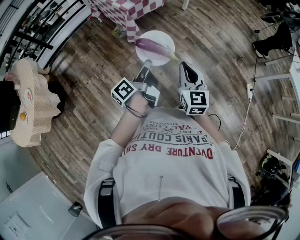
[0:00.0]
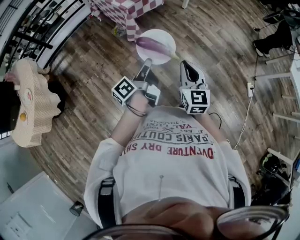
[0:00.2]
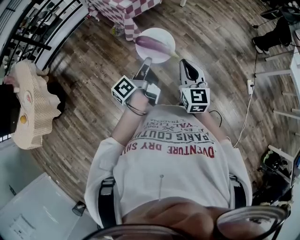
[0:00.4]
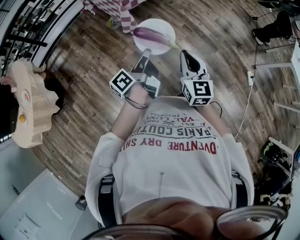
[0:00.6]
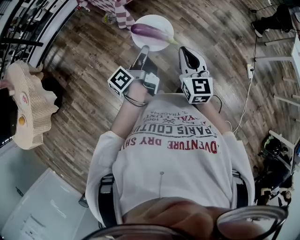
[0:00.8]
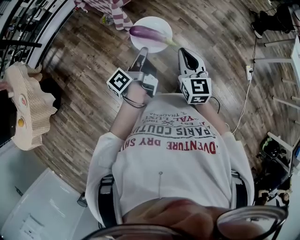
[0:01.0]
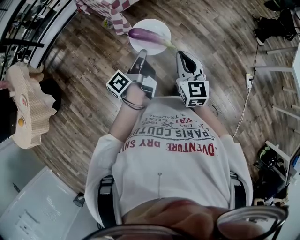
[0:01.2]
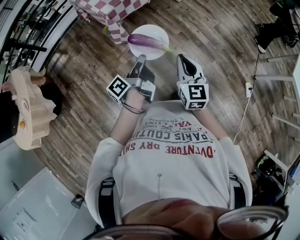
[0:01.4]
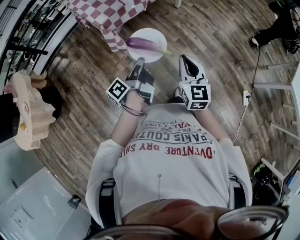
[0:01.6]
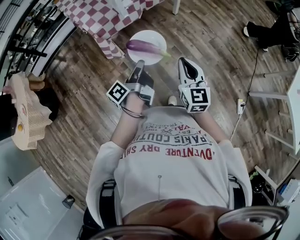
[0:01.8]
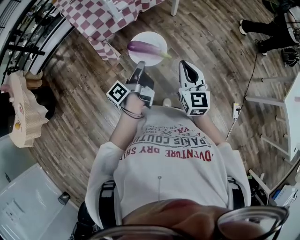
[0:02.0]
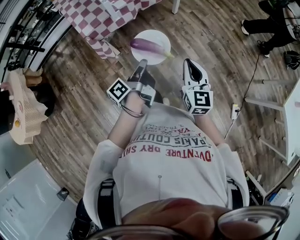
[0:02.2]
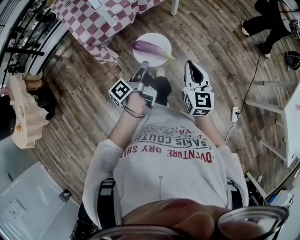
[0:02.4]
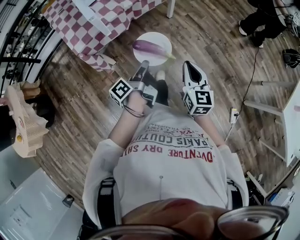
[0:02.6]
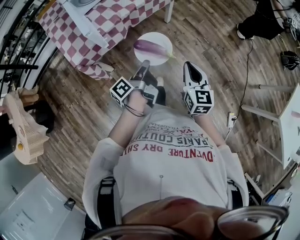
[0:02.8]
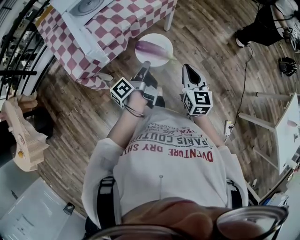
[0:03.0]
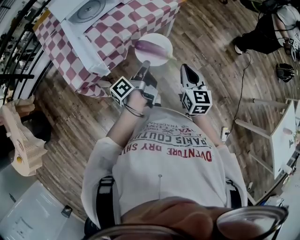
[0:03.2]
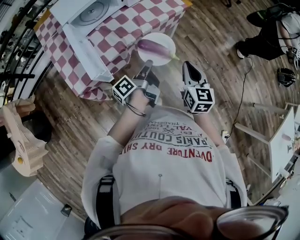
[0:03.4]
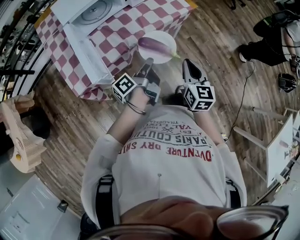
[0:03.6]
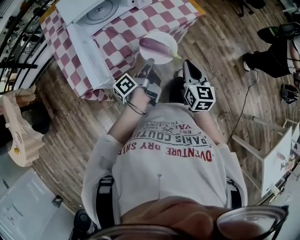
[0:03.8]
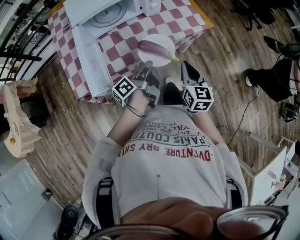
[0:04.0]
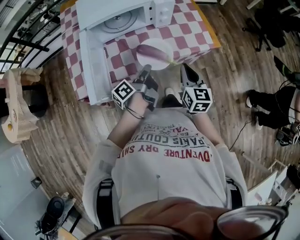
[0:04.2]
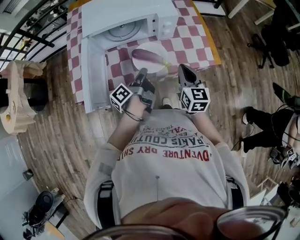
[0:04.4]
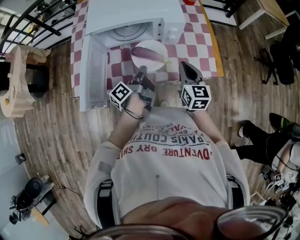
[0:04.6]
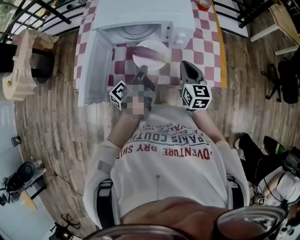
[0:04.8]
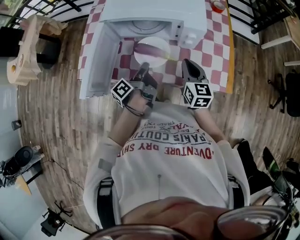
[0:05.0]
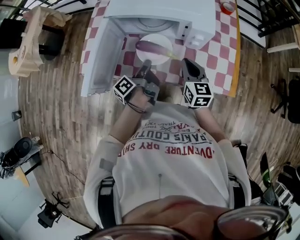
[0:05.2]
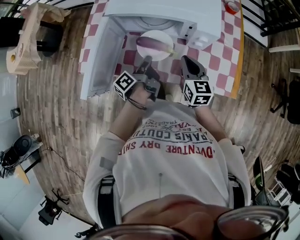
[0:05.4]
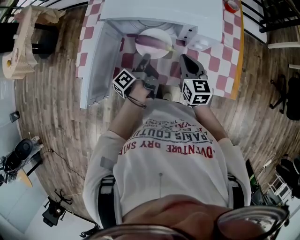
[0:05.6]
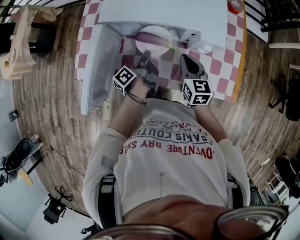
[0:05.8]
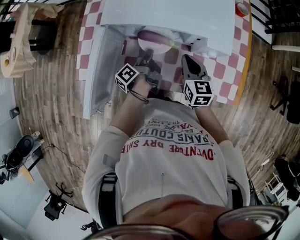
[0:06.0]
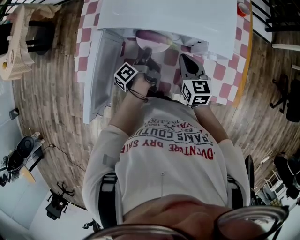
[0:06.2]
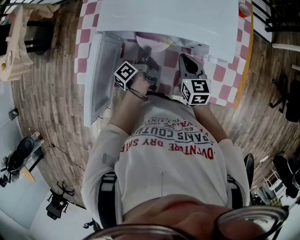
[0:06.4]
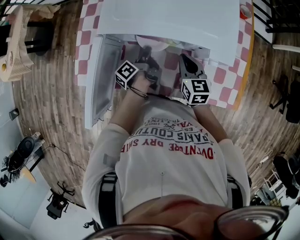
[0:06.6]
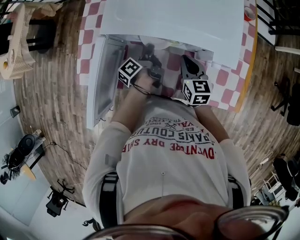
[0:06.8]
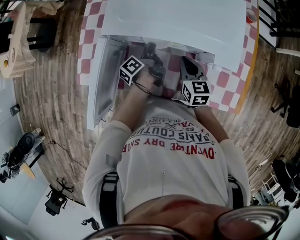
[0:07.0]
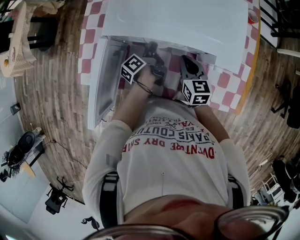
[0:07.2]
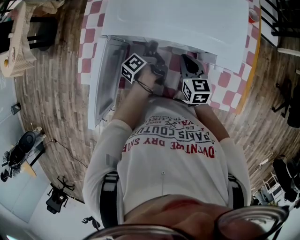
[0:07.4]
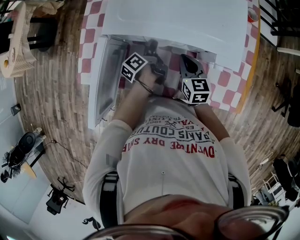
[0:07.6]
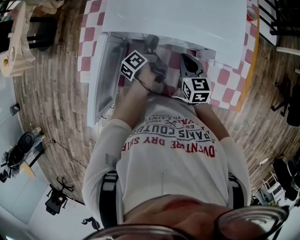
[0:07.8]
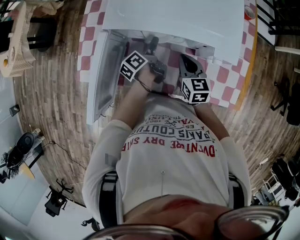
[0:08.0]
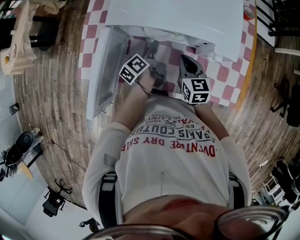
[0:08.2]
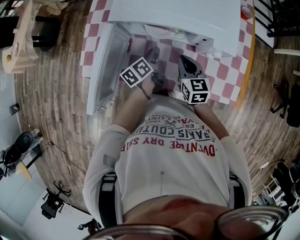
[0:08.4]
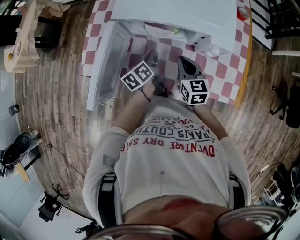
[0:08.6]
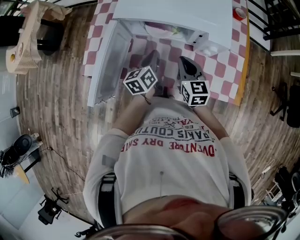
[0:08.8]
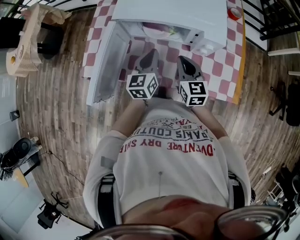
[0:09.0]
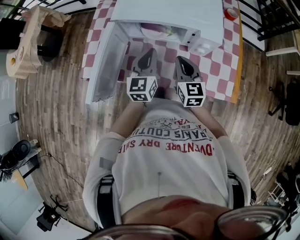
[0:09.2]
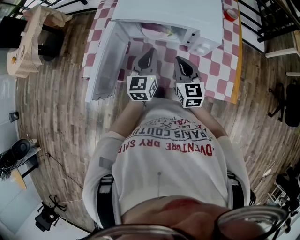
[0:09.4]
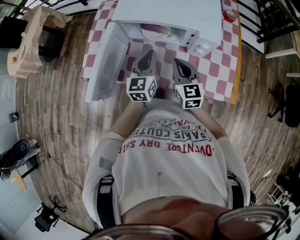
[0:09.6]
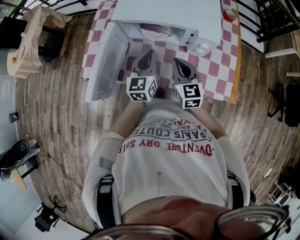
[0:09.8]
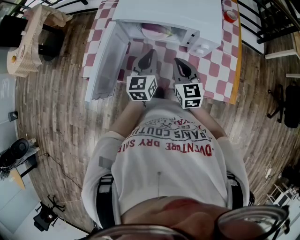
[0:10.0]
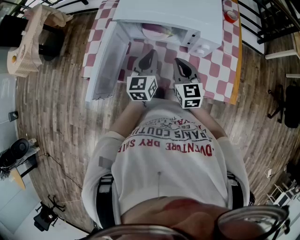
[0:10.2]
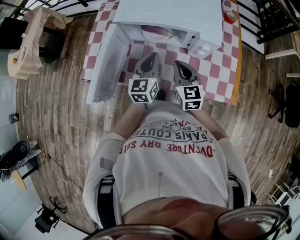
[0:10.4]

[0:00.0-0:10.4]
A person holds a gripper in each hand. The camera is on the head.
0:00.0 to 0:01.4: The right gripper moves roughly 15 cm.
0:01.4 to 0:03.0: The right gripper changes place by some 50 cm.
0:03.0 to 0:04.4: The right gripper moves approximately 40 cm, and changes its angle by roughly 30 degrees.
0:04.4 to 0:06.0: The right gripper shifts by approximately 25 cm, and swivels some 30 degrees.
0:06.0 to 0:07.4: The right gripper changes place by approximately 5 cm.
0:07.4 to 0:09.0: The right gripper changes place by about 15 cm.

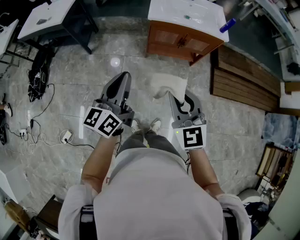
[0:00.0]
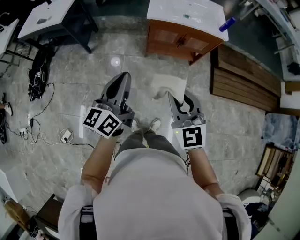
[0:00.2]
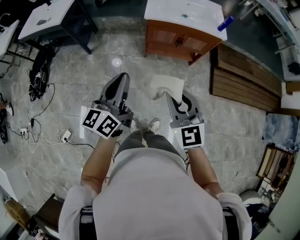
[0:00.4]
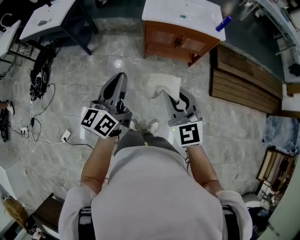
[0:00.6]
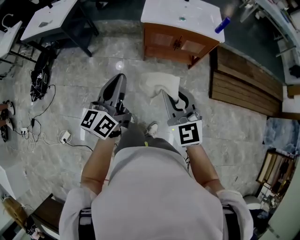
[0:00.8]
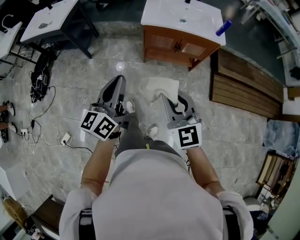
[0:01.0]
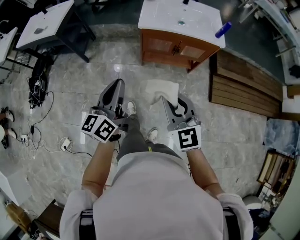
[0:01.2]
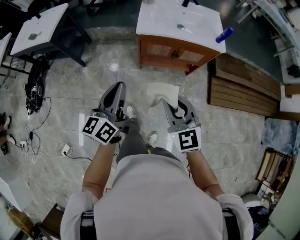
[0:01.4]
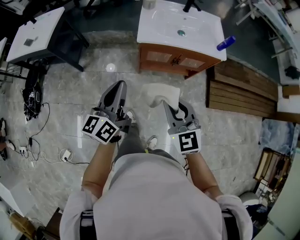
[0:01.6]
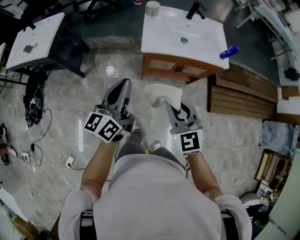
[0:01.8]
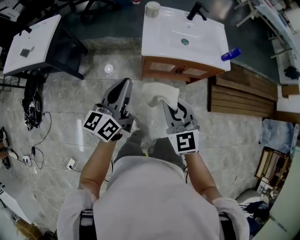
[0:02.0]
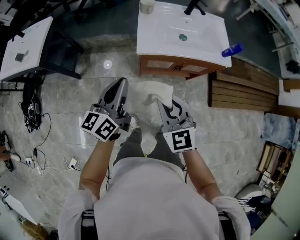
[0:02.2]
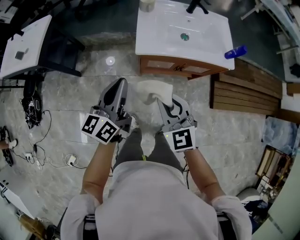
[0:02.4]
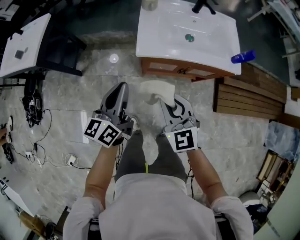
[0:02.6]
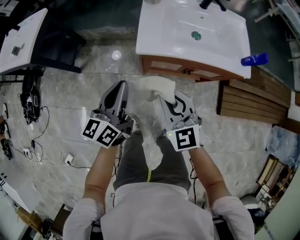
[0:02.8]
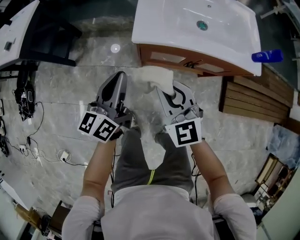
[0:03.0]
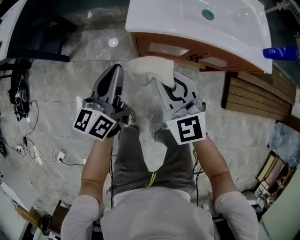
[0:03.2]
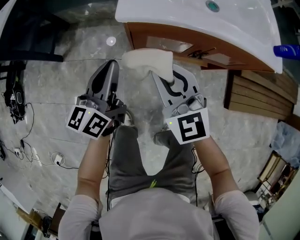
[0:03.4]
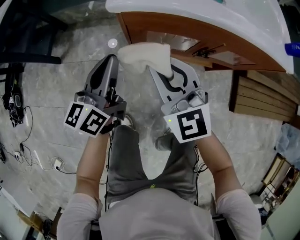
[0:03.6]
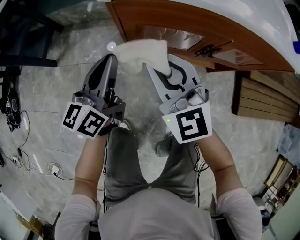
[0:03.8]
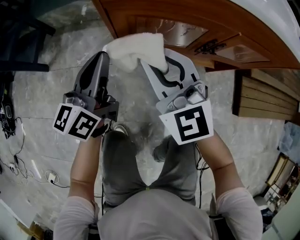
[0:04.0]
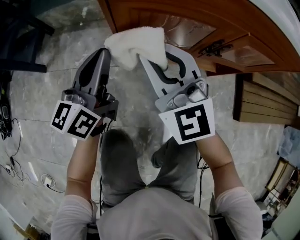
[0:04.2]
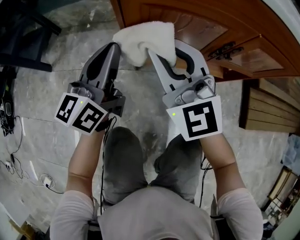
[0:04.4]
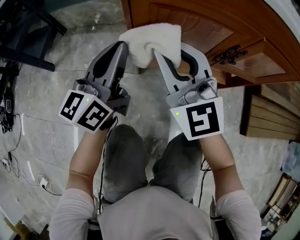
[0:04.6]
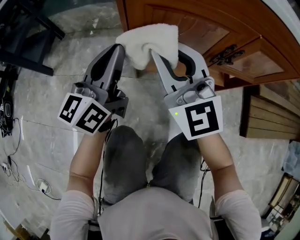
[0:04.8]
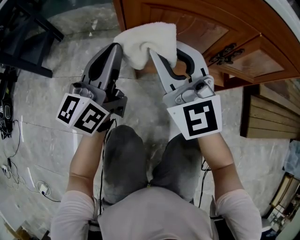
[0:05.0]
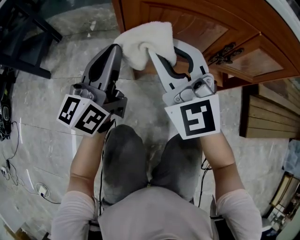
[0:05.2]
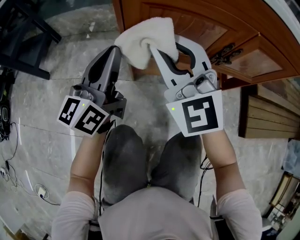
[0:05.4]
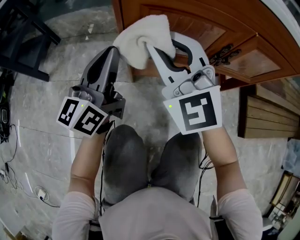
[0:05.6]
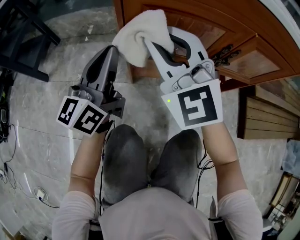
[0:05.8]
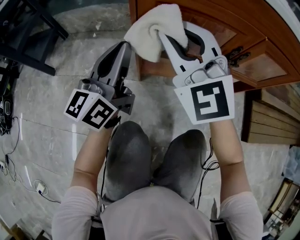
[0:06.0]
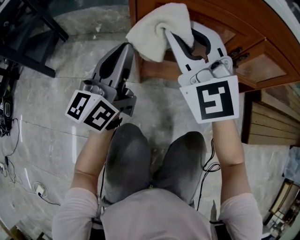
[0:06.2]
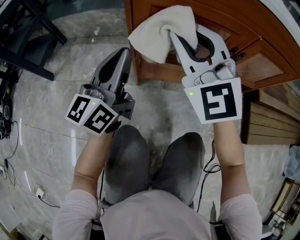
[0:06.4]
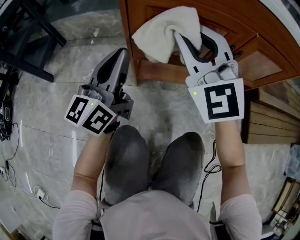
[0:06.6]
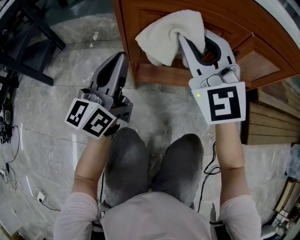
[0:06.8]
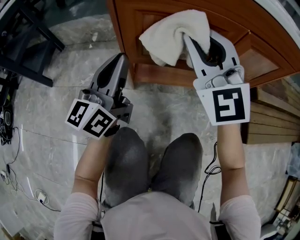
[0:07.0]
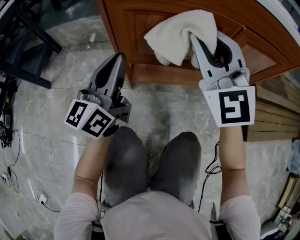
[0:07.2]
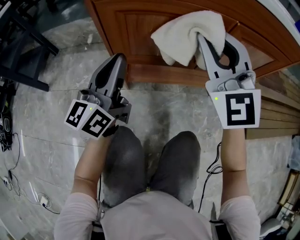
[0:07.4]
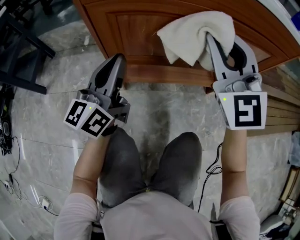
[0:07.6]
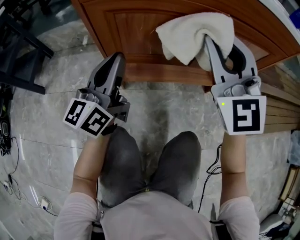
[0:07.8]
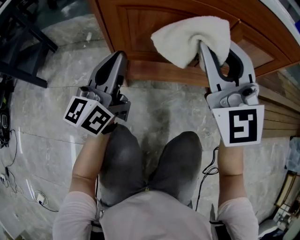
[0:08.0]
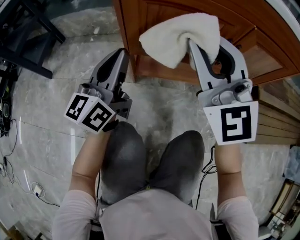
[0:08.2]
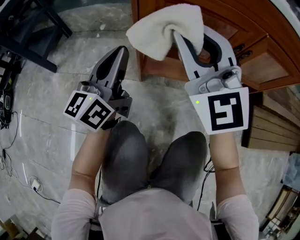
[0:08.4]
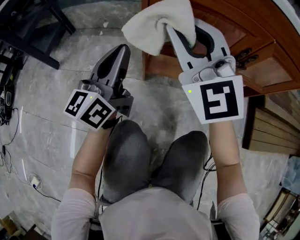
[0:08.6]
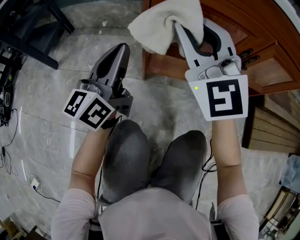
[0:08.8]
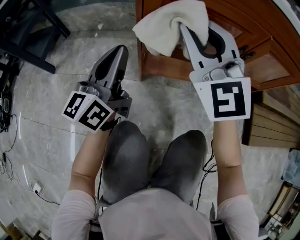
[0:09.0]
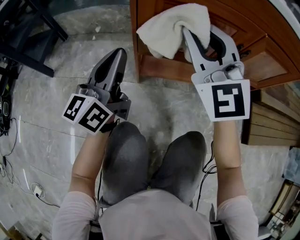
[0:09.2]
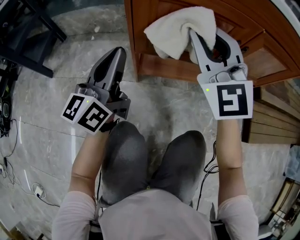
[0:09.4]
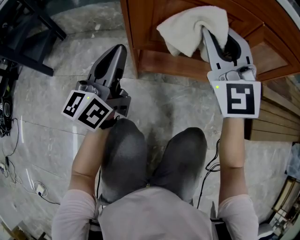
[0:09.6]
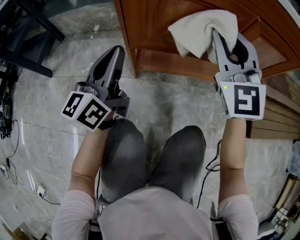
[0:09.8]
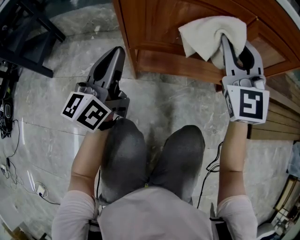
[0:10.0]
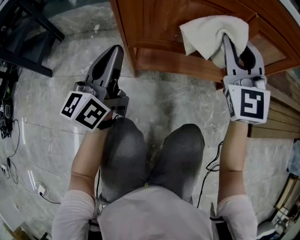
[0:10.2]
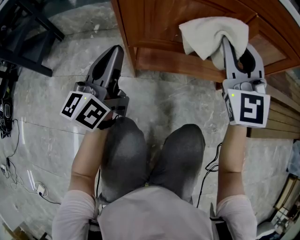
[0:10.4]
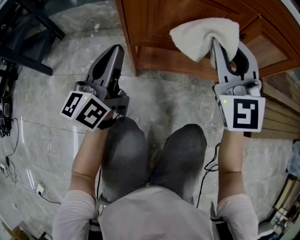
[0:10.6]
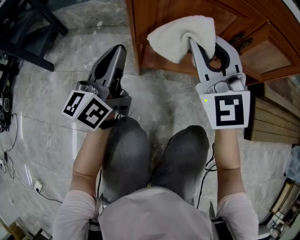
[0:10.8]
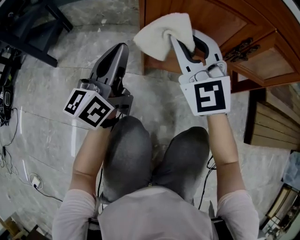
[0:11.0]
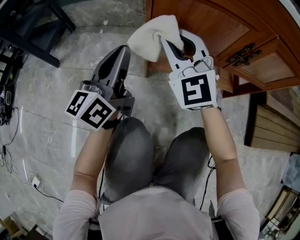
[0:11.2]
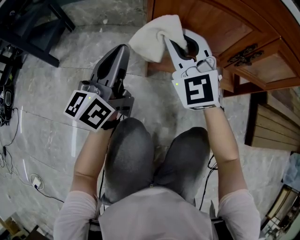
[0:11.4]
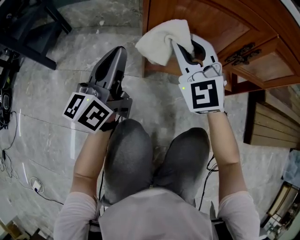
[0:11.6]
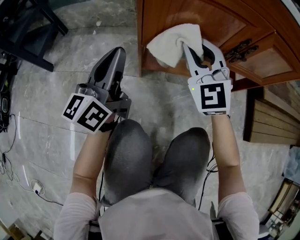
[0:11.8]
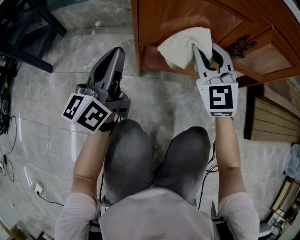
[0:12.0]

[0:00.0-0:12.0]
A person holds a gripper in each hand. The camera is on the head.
0:00.0 to 0:01.6: Both grippers travel together forward, about 20 cm.
0:01.6 to 0:03.0: The left gripper heads downward and forward, covering some 30 cm. Meanwhile the right gripper moves forward and downward, roughly 30 cm.
0:03.0 to 0:04.4: Both grippers travel together downward, roughly 30 cm. The right gripper rotates roughly 20 degrees.
0:04.4 to 0:06.0: The grippers move only a little.
0:06.0 to 0:07.6: The left gripper is displaced to the right by some 10 cm; the right gripper moves to the right, approximately 20 cm.
0:07.6 to 0:09.0: The right gripper shifts about 15 cm to the left, while the left gripper heads to the left, covering roughly 10 cm.
0:09.0 to 0:10.4: The right gripper is displaced to the right by about 15 cm.
0:10.4 to 0:12.0: The right gripper shifts roughly 15 cm downward and to the left.

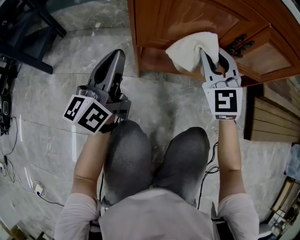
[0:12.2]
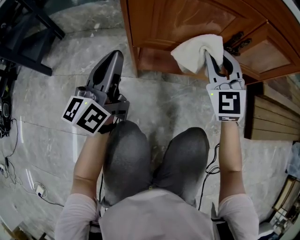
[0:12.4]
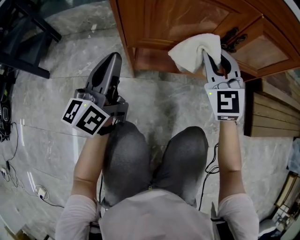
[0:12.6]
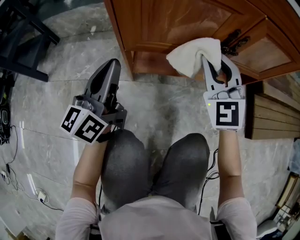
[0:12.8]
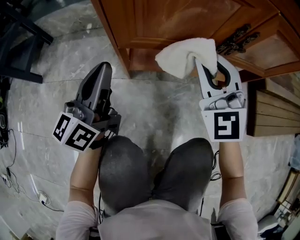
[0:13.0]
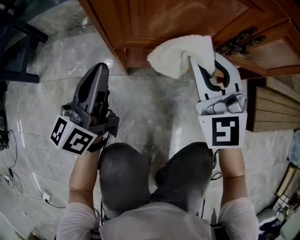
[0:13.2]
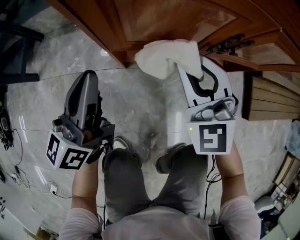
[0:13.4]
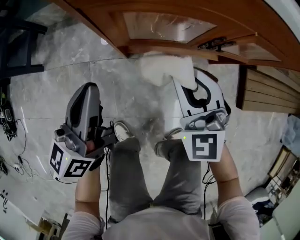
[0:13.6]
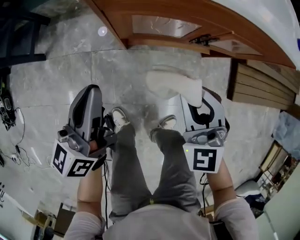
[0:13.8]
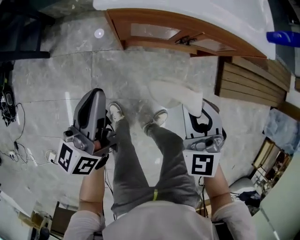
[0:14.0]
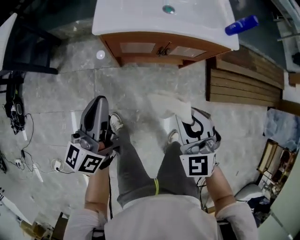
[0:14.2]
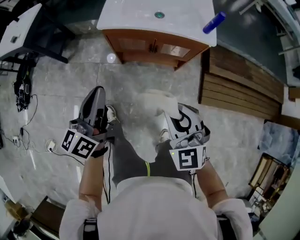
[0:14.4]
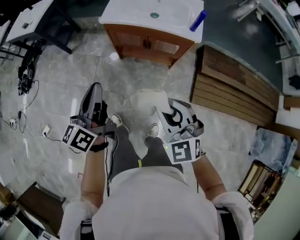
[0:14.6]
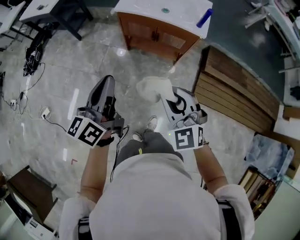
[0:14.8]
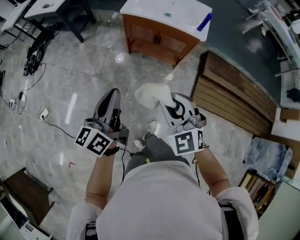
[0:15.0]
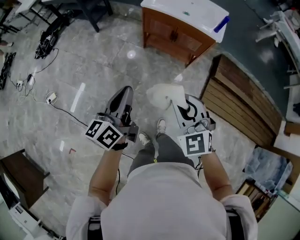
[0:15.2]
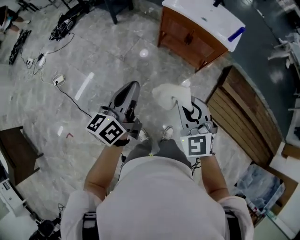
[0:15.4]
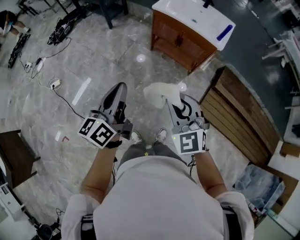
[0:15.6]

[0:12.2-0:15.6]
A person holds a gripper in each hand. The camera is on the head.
0:12.2 to 0:13.8: The right gripper heads upward and backward, covering roughly 20 cm; the left gripper travels upward by about 20 cm.
0:13.8 to 0:15.6: The two grippers travel together, some 60 cm. The right gripper rotates roughly 30 degrees; the left gripper changes its angle by approximately 30 degrees.
